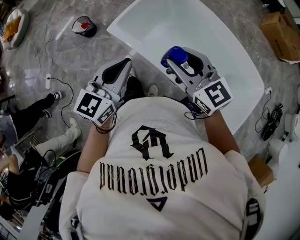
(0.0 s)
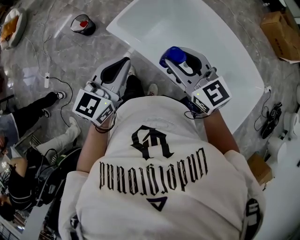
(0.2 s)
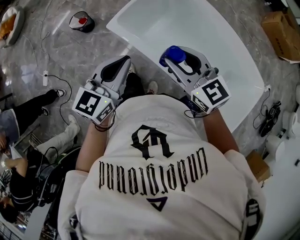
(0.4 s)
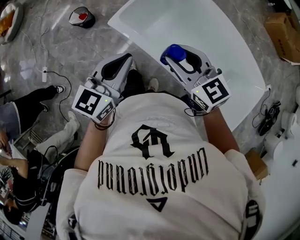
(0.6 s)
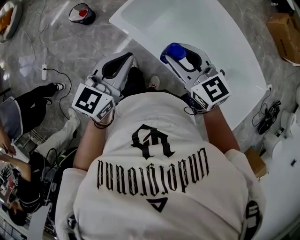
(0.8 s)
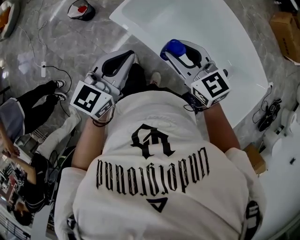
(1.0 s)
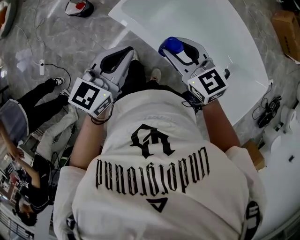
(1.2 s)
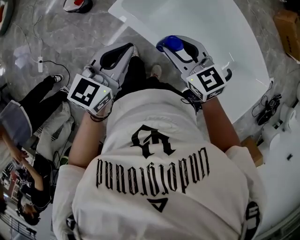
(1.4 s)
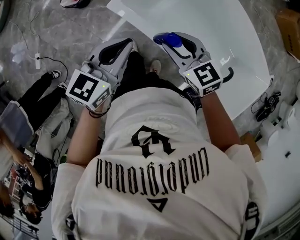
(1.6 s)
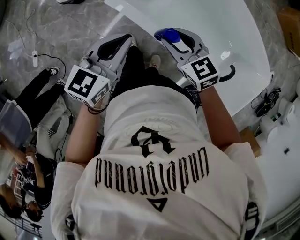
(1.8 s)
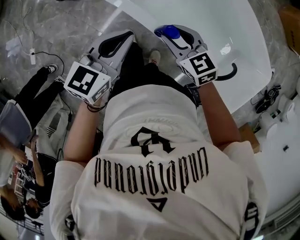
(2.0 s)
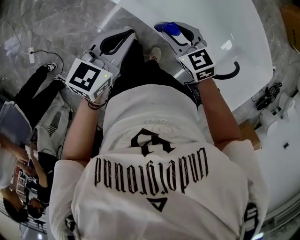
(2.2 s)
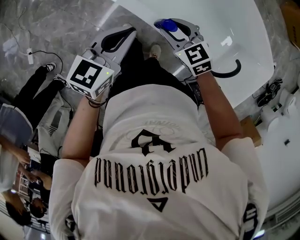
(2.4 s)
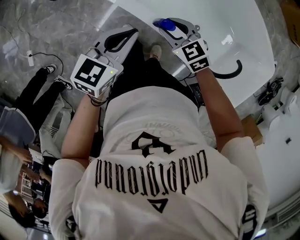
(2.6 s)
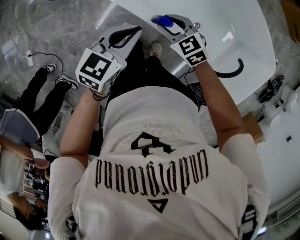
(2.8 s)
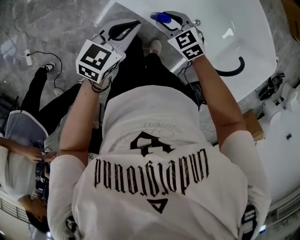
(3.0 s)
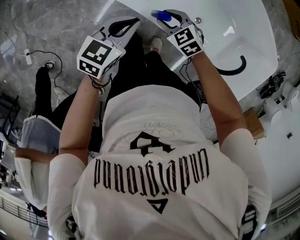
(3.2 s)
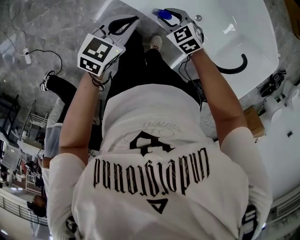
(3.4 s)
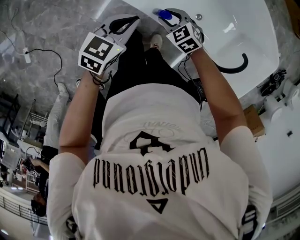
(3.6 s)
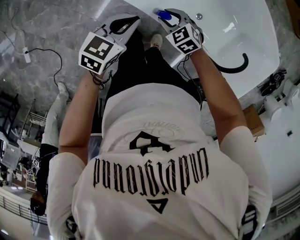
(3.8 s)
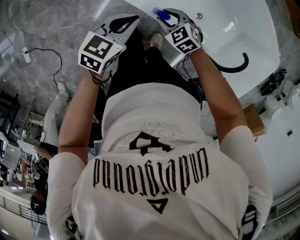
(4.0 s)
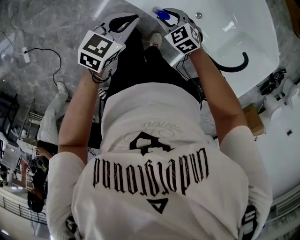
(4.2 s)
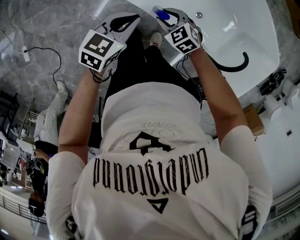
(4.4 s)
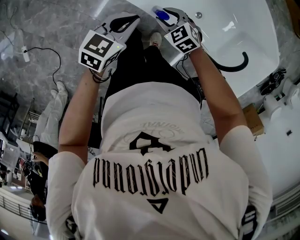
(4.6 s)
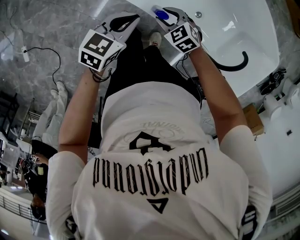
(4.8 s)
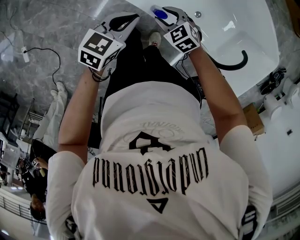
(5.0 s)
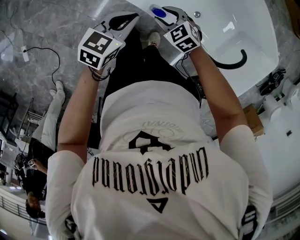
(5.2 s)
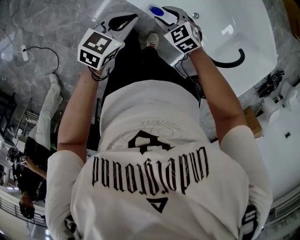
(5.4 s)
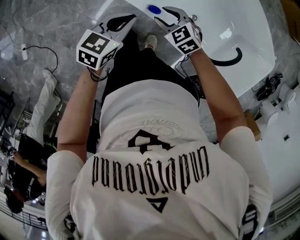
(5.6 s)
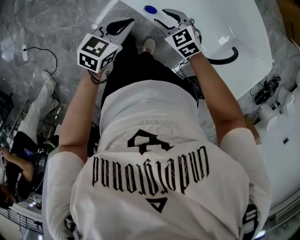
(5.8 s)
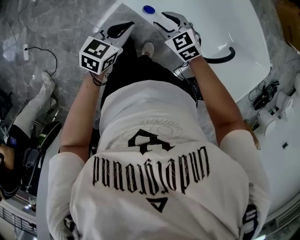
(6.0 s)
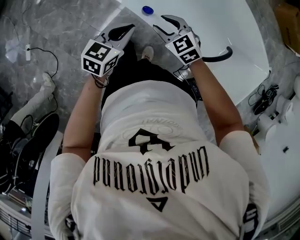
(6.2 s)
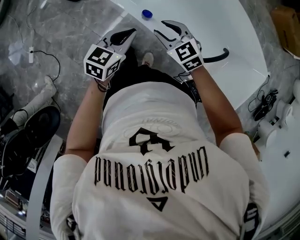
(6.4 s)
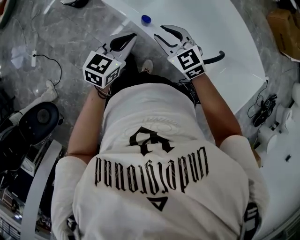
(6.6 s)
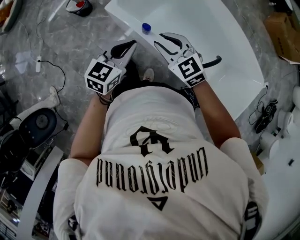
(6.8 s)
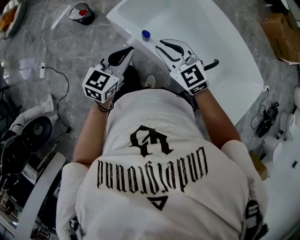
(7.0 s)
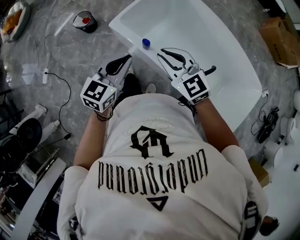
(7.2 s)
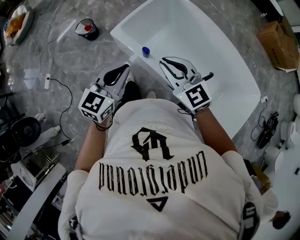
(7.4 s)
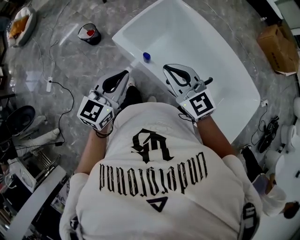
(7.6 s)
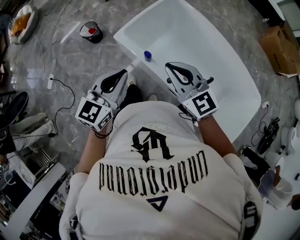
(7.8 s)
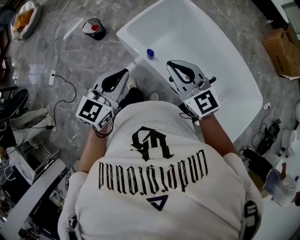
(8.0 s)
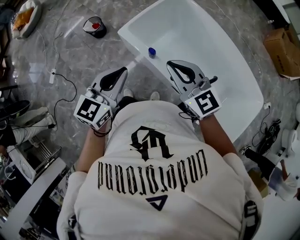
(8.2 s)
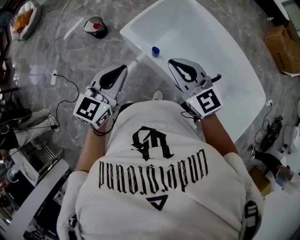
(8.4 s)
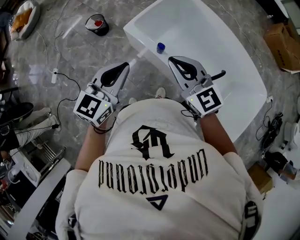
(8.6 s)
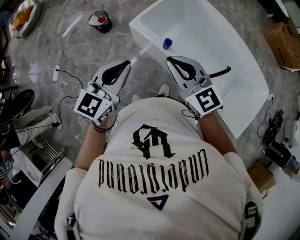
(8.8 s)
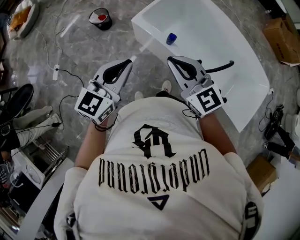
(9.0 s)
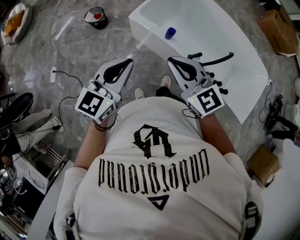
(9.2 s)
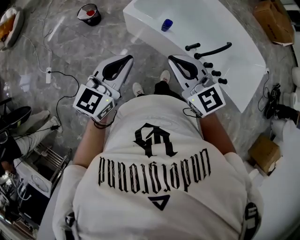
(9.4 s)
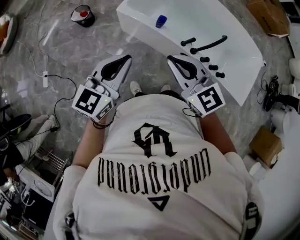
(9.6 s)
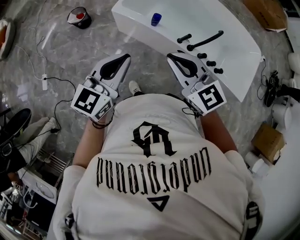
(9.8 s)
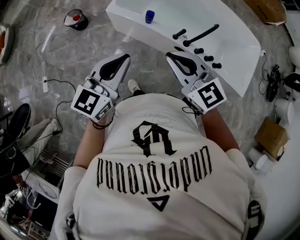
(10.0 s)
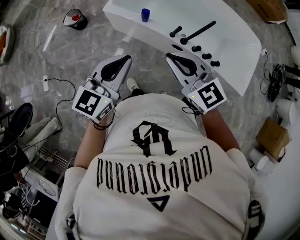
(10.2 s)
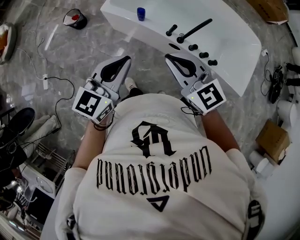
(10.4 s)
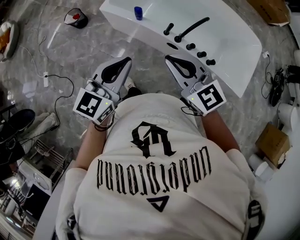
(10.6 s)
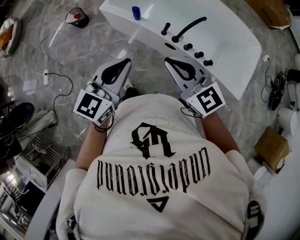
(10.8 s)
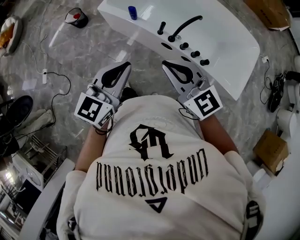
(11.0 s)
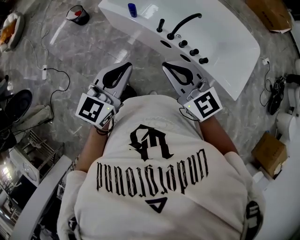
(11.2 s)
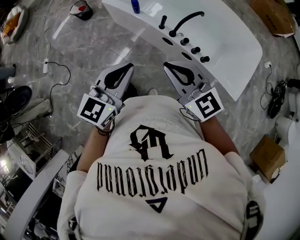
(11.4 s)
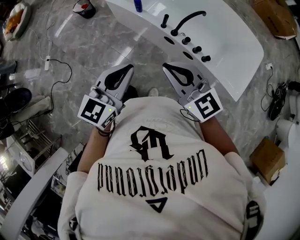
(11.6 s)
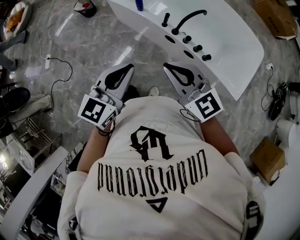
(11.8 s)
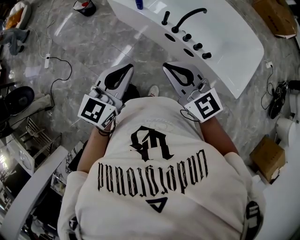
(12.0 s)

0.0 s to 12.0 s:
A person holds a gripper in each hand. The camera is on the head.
0.0 to 1.6 s: The right gripper shifts roughly 25 cm downward, forward and to the left. Meanwhile the left gripper shifts roughly 20 cm forward, downward and to the left.
1.6 to 3.0 s: Both grippers travel together downward, approximately 15 cm.
3.0 to 4.4 s: The two grippers go roughly 5 cm downward.
4.4 to 6.0 s: The left gripper moves backward, about 5 cm, while the right gripper is displaced upward by approximately 10 cm.
6.0 to 7.6 s: The left gripper heads upward and backward, covering some 30 cm, and rotates about 30 degrees. The right gripper travels upward by approximately 35 cm, angles its fingers upward, by some 30 degrees, and closes.
7.6 to 9.0 s: The right gripper heads to the left and backward, covering approximately 20 cm, while the left gripper heads to the left, covering about 15 cm.
9.0 to 10.4 s: The left gripper travels to the right and backward by approximately 15 cm. The right gripper goes roughly 15 cm backward and to the right.
10.4 to 12.0 s: The grippers both shift backward and to the right by roughly 20 cm.

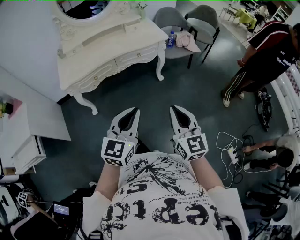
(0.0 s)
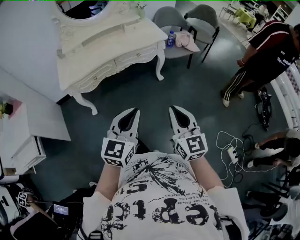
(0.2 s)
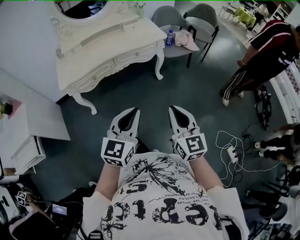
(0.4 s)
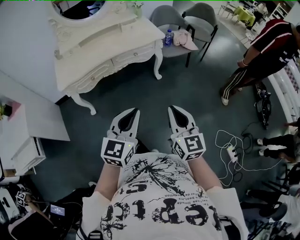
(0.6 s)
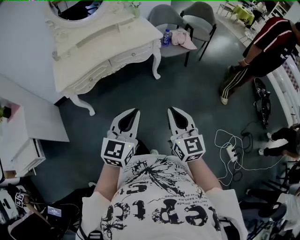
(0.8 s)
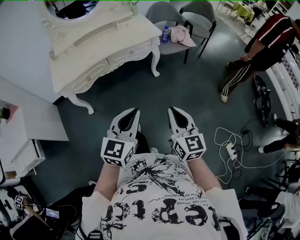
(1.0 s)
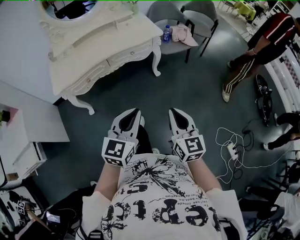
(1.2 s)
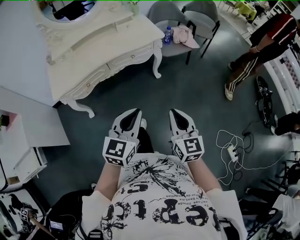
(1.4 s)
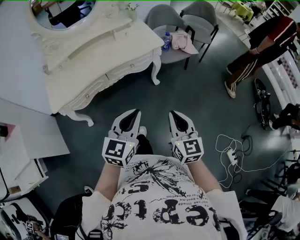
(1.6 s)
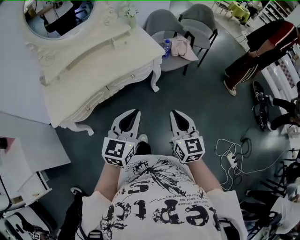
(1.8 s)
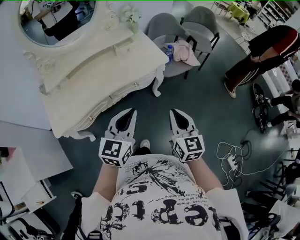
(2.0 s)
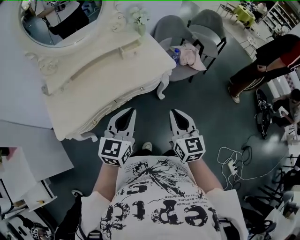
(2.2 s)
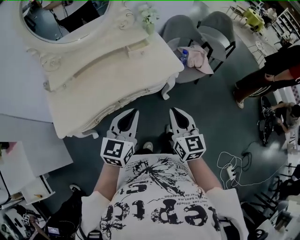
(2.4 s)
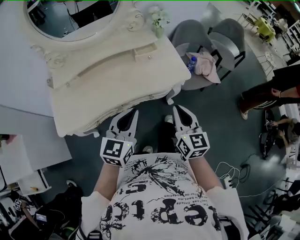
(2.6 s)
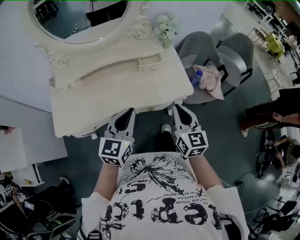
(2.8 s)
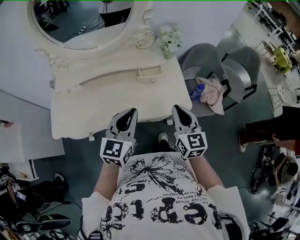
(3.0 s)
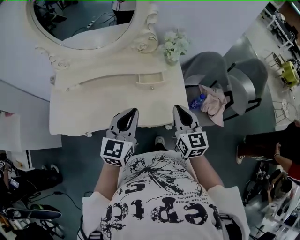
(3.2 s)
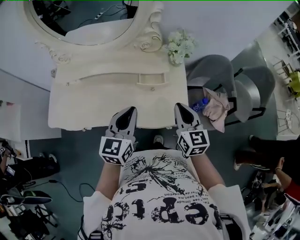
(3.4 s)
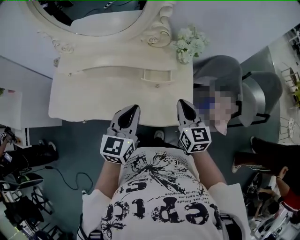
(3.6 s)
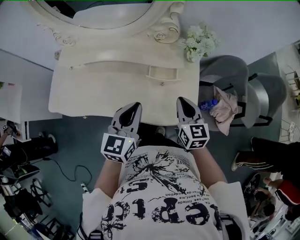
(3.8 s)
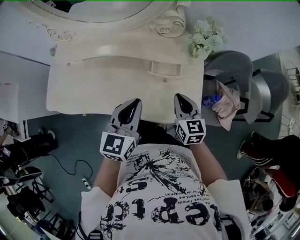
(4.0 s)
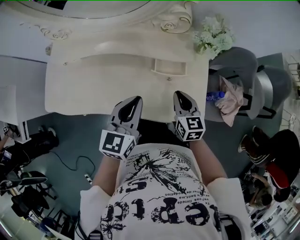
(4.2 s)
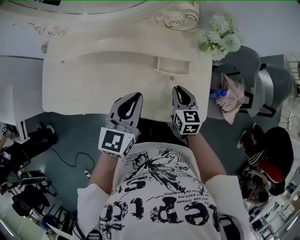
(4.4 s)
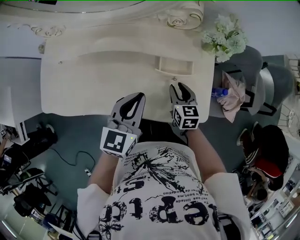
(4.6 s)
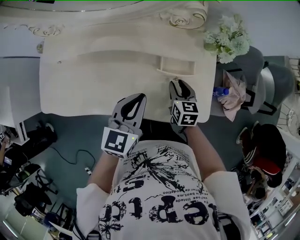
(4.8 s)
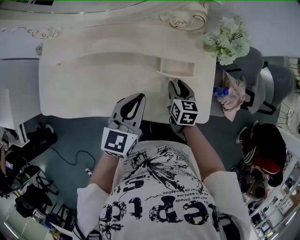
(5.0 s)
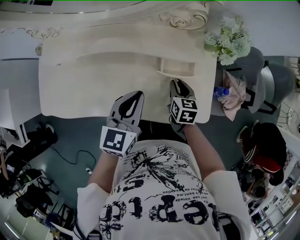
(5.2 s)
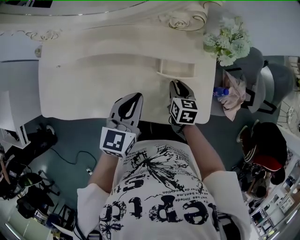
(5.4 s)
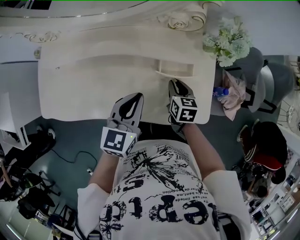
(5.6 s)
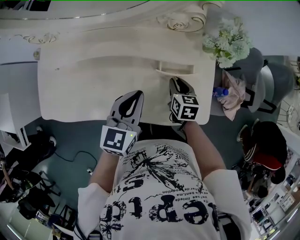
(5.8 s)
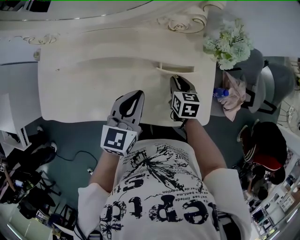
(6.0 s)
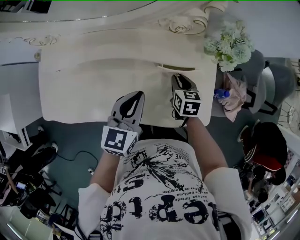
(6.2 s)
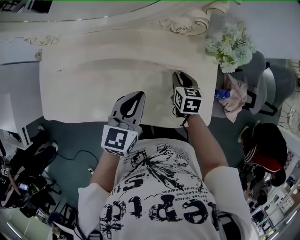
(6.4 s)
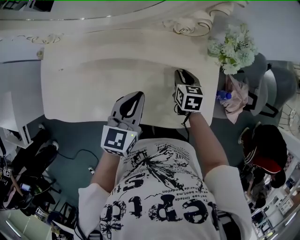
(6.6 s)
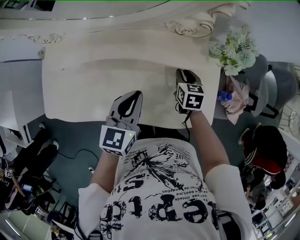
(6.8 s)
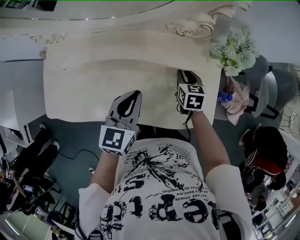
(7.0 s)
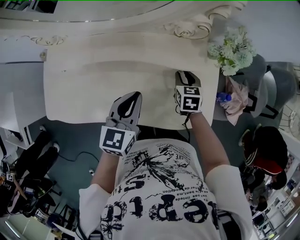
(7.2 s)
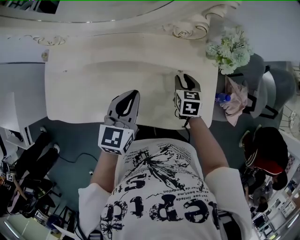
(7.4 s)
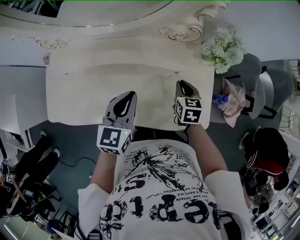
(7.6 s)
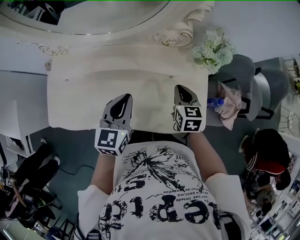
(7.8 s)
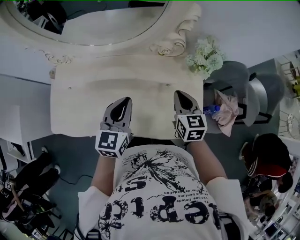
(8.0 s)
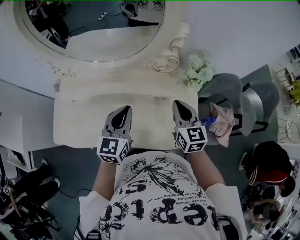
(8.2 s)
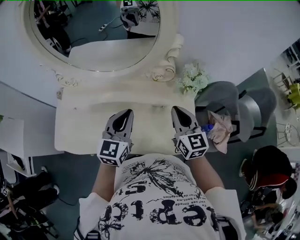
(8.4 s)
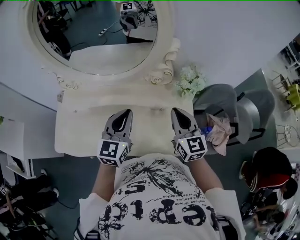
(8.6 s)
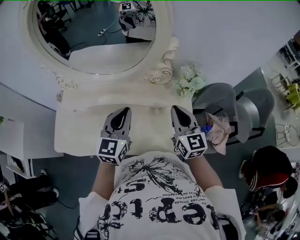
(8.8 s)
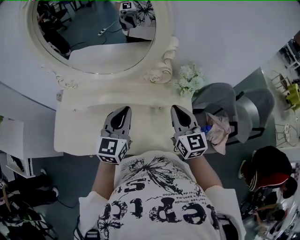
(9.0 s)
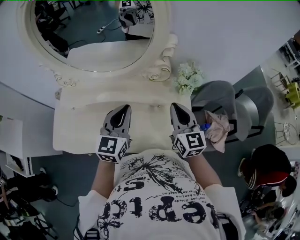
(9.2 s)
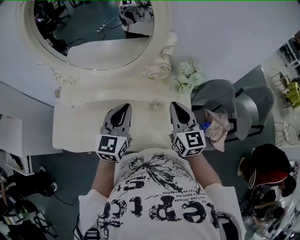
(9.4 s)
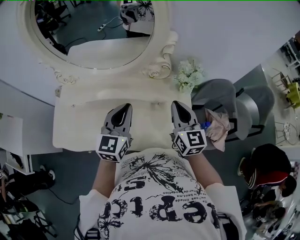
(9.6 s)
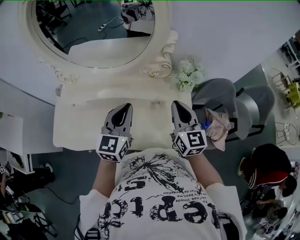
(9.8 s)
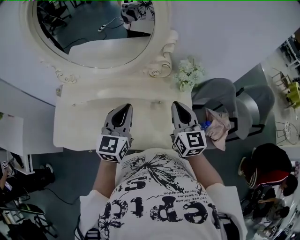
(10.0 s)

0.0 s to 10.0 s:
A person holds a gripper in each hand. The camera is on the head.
0.0 to 1.4 s: The left gripper heads forward, covering some 10 cm, while the right gripper moves forward and downward, approximately 10 cm.
1.4 to 2.8 s: Both grippers are carried forward, some 50 cm.
2.8 to 4.2 s: The left gripper goes about 20 cm forward, and turns by approximately 20 degrees. The right gripper goes about 30 cm forward and downward, and turns by about 30 degrees.
4.2 to 5.8 s: The right gripper goes approximately 10 cm downward and forward. The left gripper shifts approximately 5 cm forward.
5.8 to 7.2 s: The right gripper heads forward, covering about 5 cm.
7.2 to 8.6 s: The right gripper goes some 30 cm upward, tilts its fingers approximately 40 degrees upward, and closes up. The left gripper goes roughly 15 cm upward.
8.6 to 10.0 s: The grippers make only small movements.

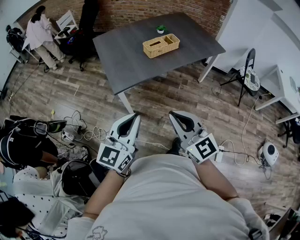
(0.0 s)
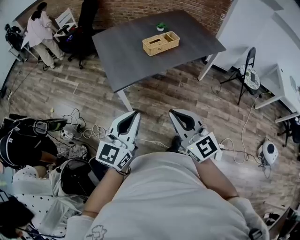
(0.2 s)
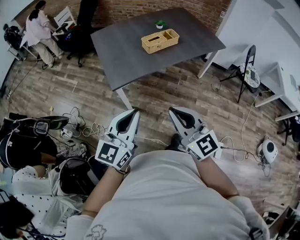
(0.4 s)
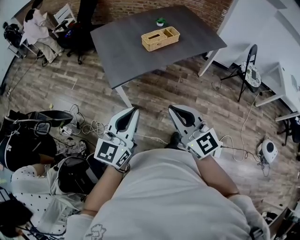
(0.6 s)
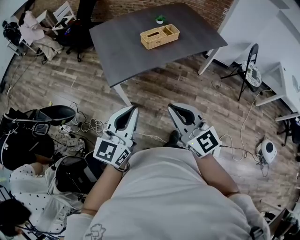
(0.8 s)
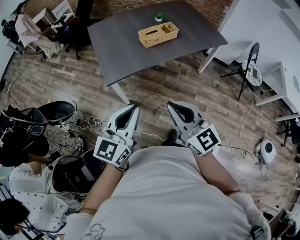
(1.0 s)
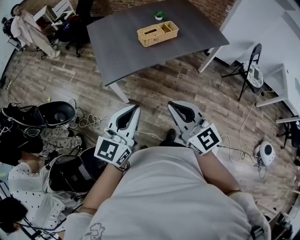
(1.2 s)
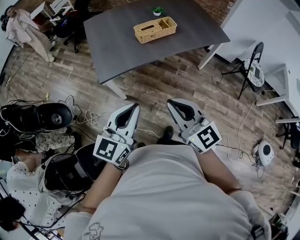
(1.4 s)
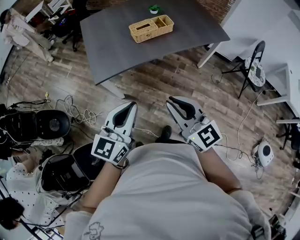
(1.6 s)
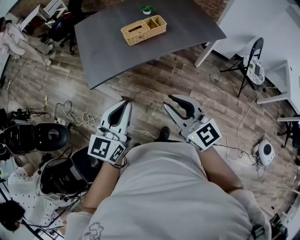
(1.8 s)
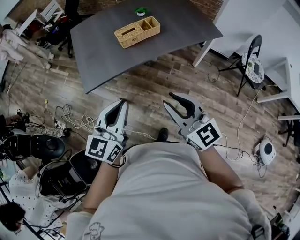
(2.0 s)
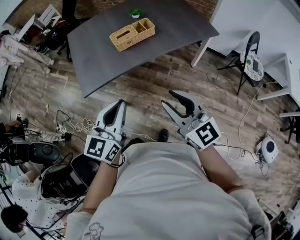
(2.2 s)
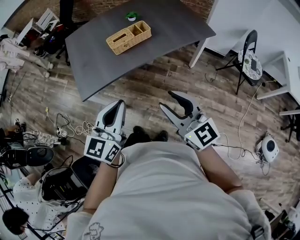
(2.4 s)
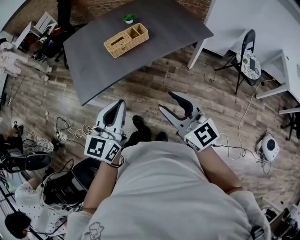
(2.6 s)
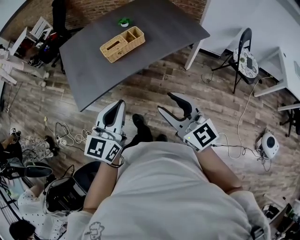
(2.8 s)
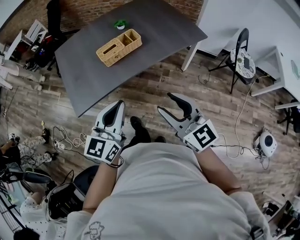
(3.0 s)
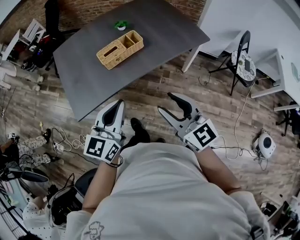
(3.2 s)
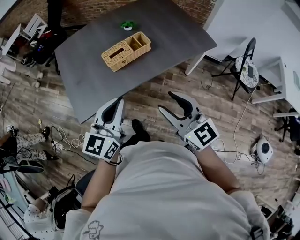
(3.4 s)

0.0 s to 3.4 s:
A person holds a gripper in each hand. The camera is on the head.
0.0 to 1.6 s: The two grippers go approximately 15 cm to the right and forward.
1.6 to 3.4 s: The left gripper moves forward, some 20 cm; the right gripper travels forward and to the right by roughly 20 cm, and opens up.
